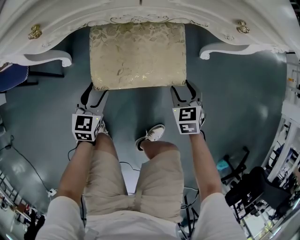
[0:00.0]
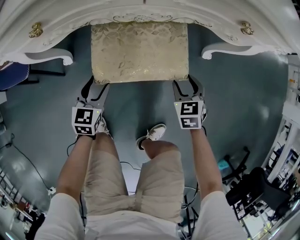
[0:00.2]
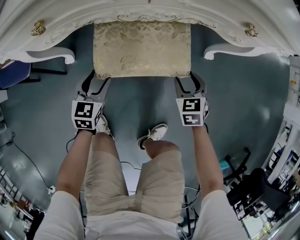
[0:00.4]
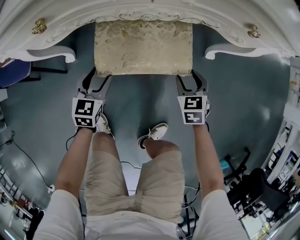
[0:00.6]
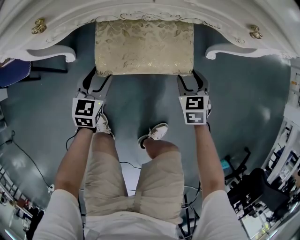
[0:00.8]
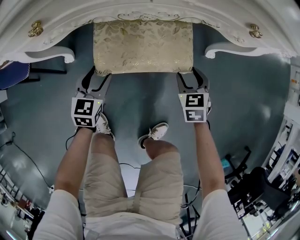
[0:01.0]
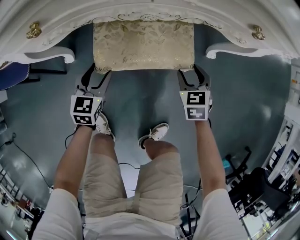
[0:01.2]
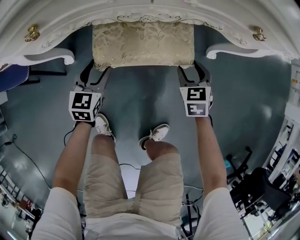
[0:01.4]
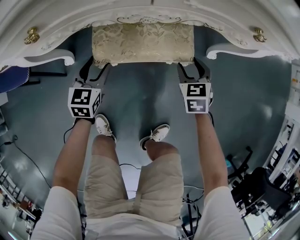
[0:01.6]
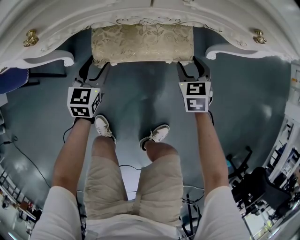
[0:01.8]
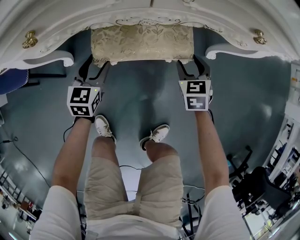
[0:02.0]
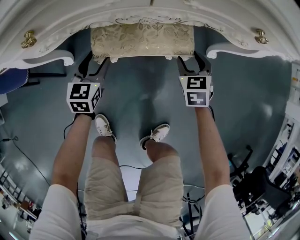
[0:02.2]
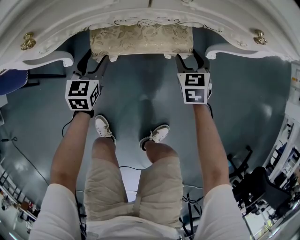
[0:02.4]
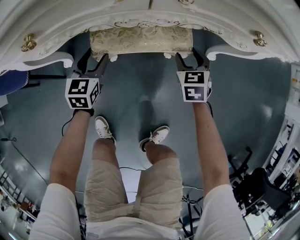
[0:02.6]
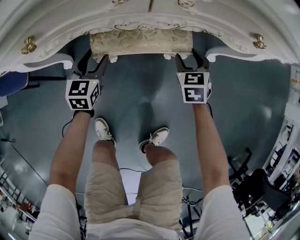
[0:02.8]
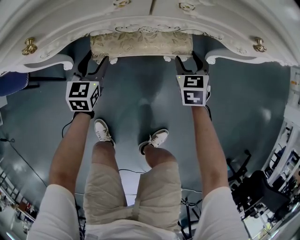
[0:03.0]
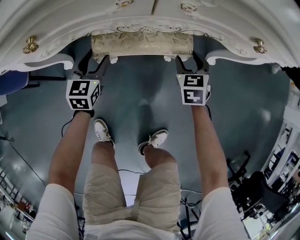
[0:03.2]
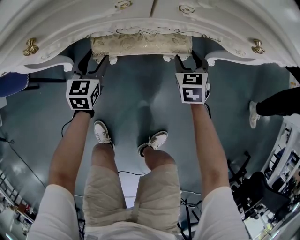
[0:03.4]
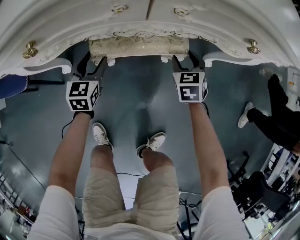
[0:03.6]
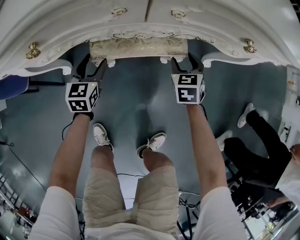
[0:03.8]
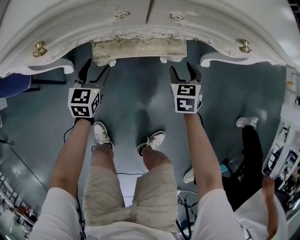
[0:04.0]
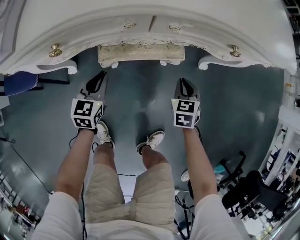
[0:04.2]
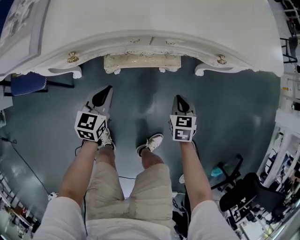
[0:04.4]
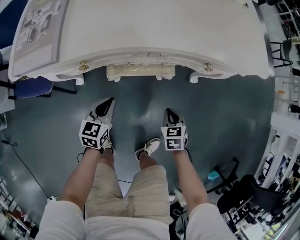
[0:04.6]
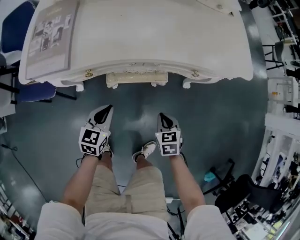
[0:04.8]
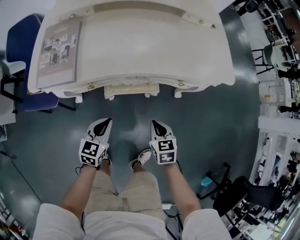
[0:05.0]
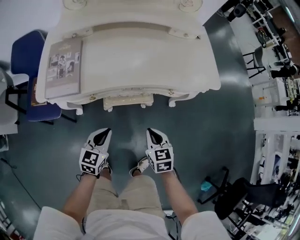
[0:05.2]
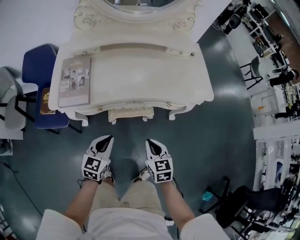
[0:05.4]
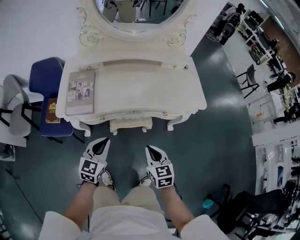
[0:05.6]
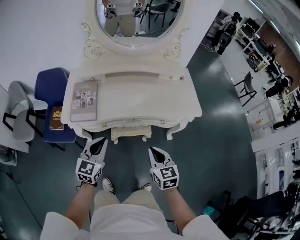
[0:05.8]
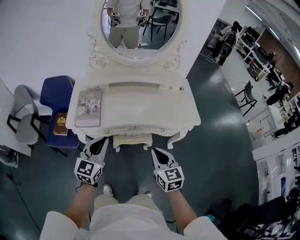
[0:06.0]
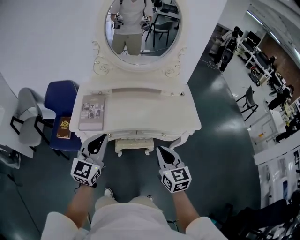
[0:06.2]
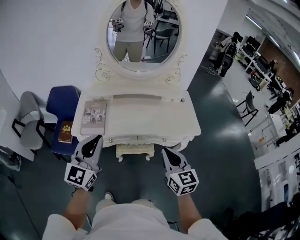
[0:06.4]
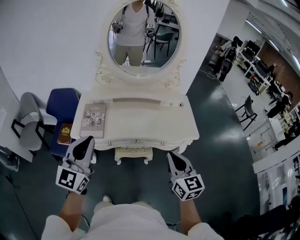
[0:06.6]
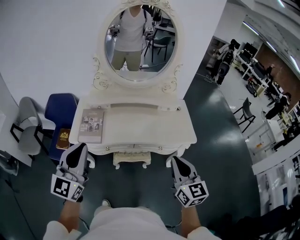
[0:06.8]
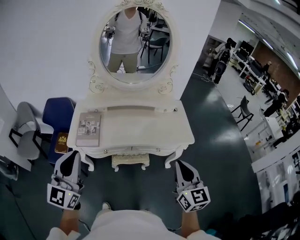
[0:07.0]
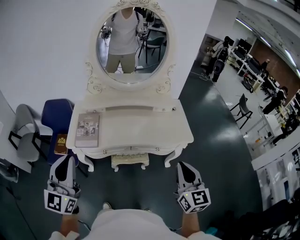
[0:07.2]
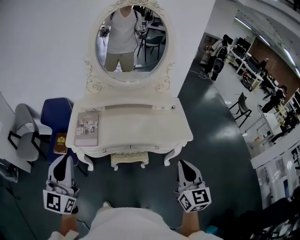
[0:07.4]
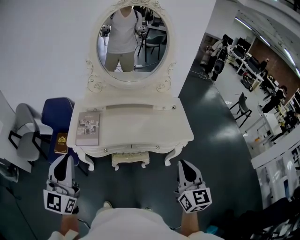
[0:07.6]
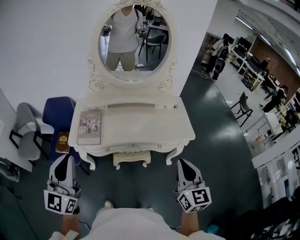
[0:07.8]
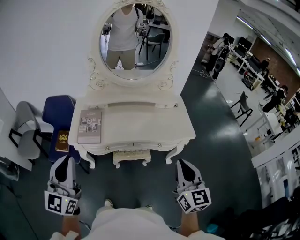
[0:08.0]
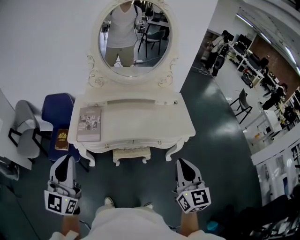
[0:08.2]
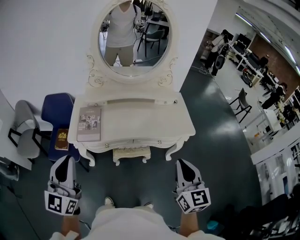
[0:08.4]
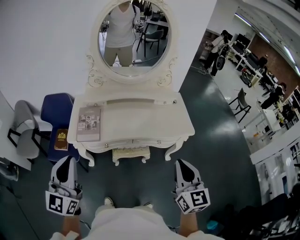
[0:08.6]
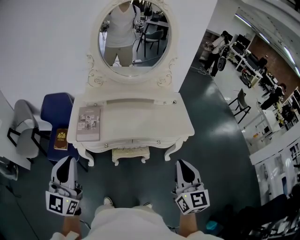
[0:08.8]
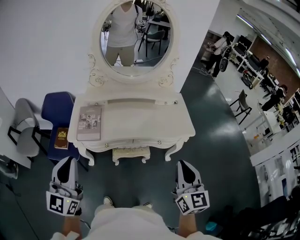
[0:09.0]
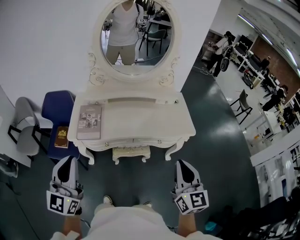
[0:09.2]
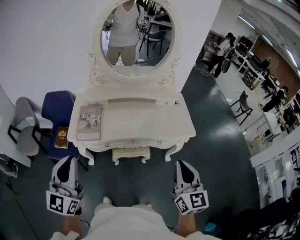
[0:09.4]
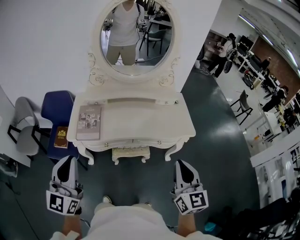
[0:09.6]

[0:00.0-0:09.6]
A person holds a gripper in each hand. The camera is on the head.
0:00.0 to 0:01.6: The two grippers go some 10 cm forward.
0:01.6 to 0:03.2: The grippers both shift forward by roughly 5 cm.
0:03.2 to 0:04.8: Both grippers move upward and backward, about 25 cm. The left gripper closes. Meanwhile the right gripper closes up.
0:04.8 to 0:06.4: The two grippers go some 50 cm upward. The right gripper tilts its fingers roughly 40 degrees upward. Meanwhile the left gripper tilts its fingers some 40 degrees upward.
0:06.4 to 0:08.0: The right gripper is displaced upward, backward and to the right by about 10 cm. Meanwhile the left gripper travels to the left, backward and upward by approximately 10 cm.
0:08.0 to 0:09.6: The grippers stay close to where they were, moving slightly.

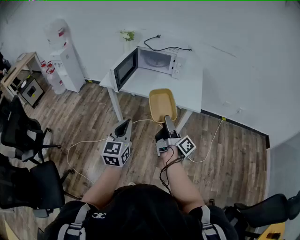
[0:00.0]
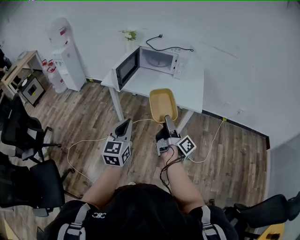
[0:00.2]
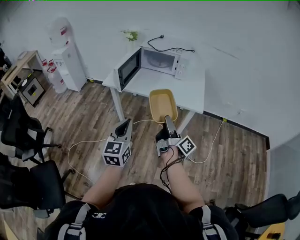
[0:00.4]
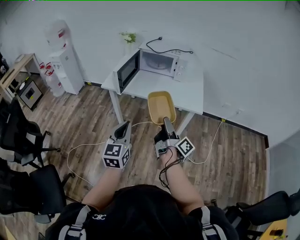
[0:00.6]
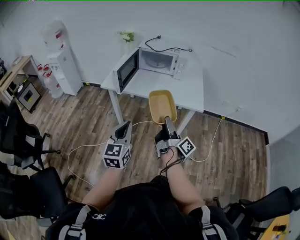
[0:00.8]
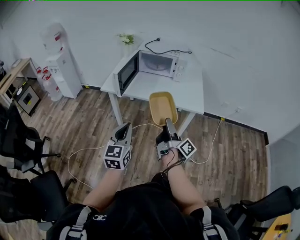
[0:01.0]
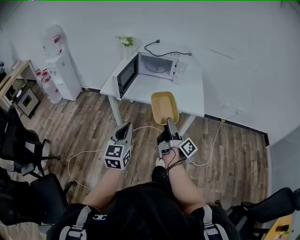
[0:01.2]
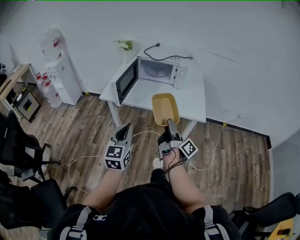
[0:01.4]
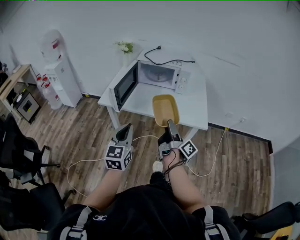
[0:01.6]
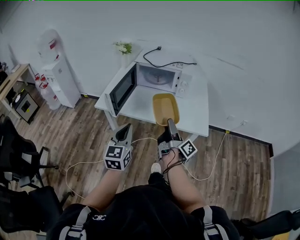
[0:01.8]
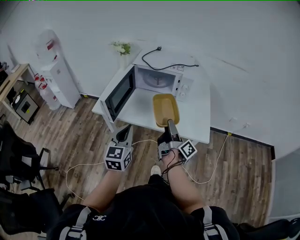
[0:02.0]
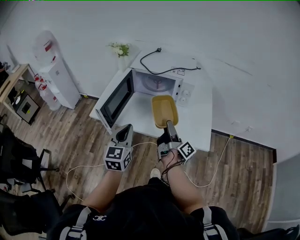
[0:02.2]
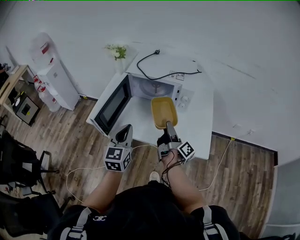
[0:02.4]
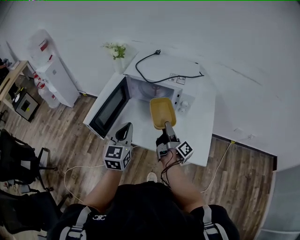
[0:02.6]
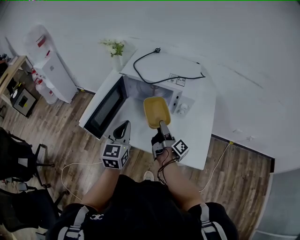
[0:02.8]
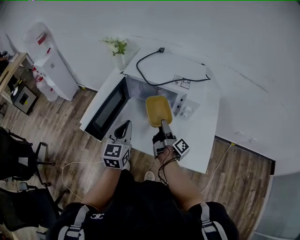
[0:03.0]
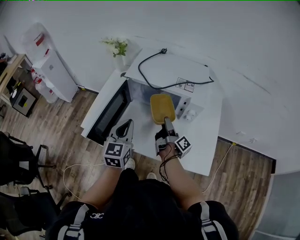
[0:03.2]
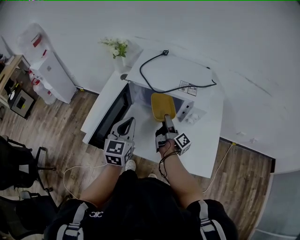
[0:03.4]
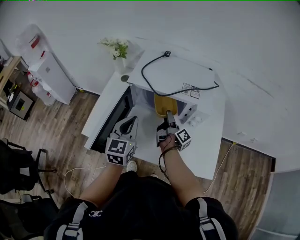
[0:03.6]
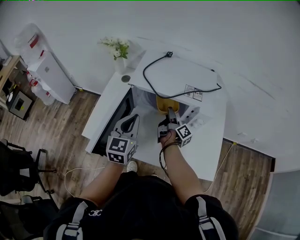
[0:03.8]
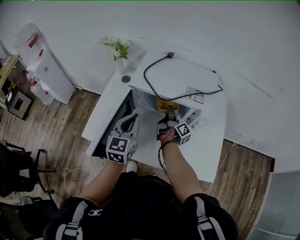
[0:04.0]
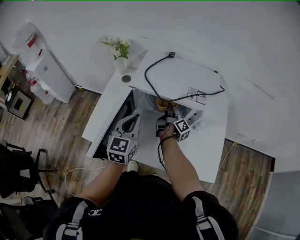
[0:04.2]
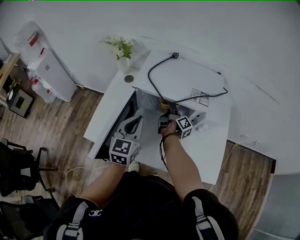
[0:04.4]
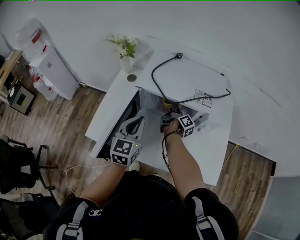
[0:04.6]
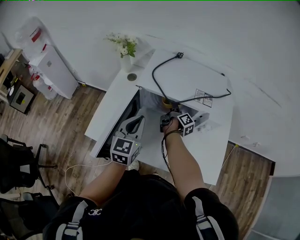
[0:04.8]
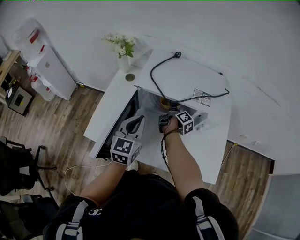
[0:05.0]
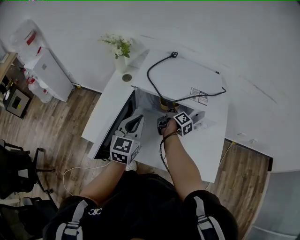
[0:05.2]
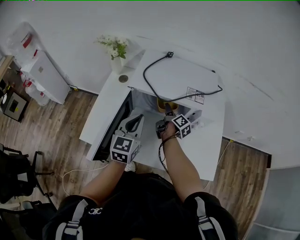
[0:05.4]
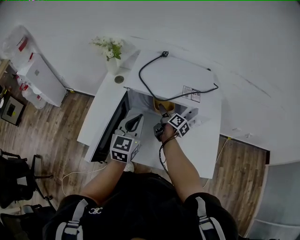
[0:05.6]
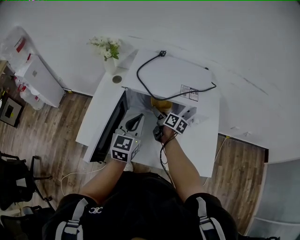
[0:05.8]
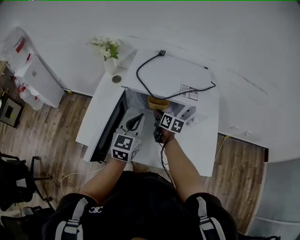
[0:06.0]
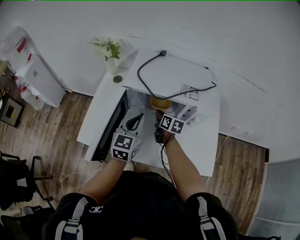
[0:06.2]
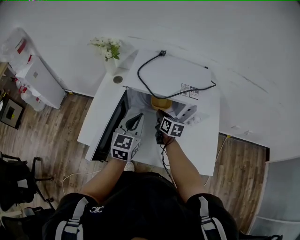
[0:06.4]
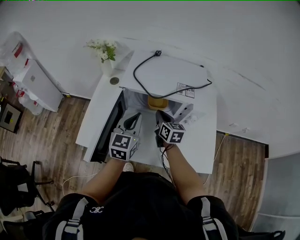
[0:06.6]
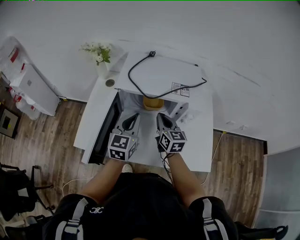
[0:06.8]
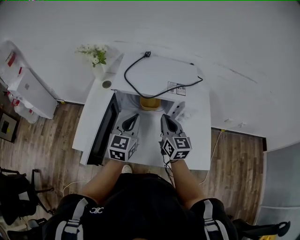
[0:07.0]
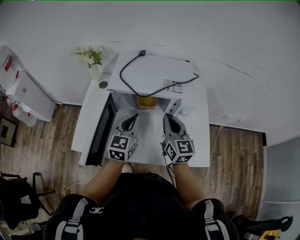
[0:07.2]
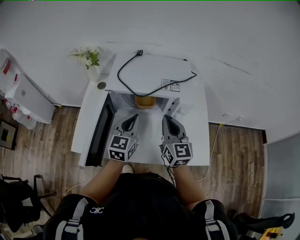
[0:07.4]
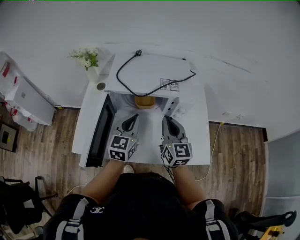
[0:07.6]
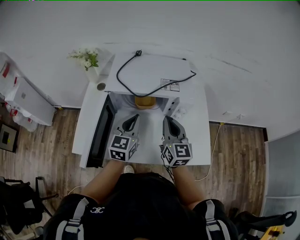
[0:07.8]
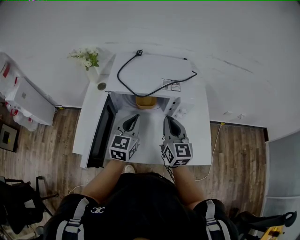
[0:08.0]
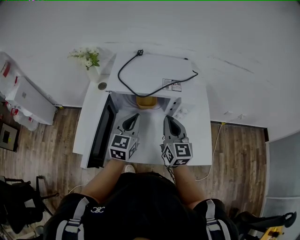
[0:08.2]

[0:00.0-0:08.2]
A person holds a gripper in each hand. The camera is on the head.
0:00.0 to 0:01.6: The left gripper ends up about 15 cm from where it was.
0:01.6 to 0:03.2: The left gripper moves approximately 40 cm.
0:03.2 to 0:05.0: The left gripper shifts by about 10 cm.

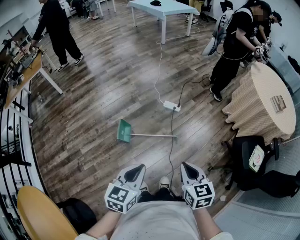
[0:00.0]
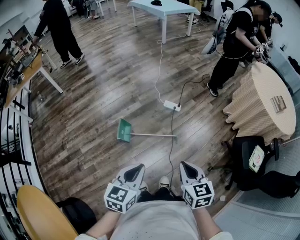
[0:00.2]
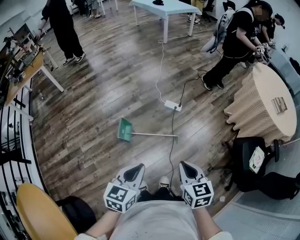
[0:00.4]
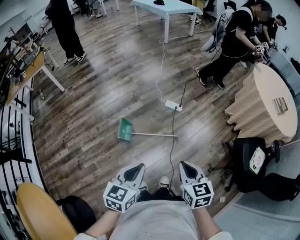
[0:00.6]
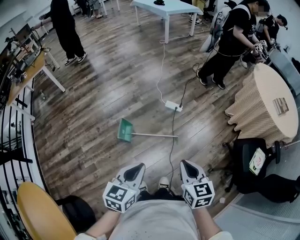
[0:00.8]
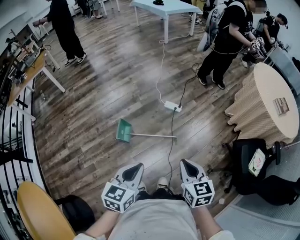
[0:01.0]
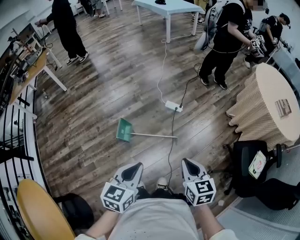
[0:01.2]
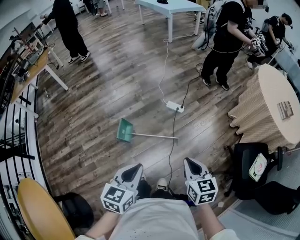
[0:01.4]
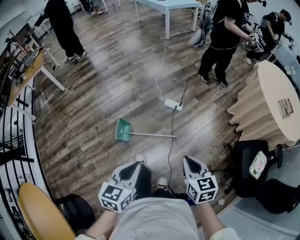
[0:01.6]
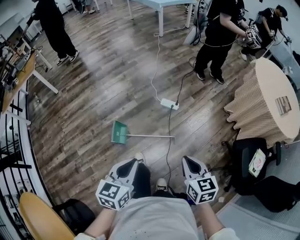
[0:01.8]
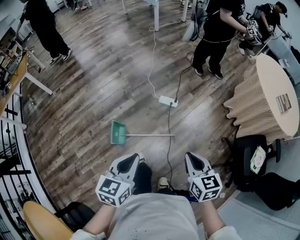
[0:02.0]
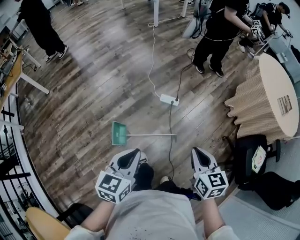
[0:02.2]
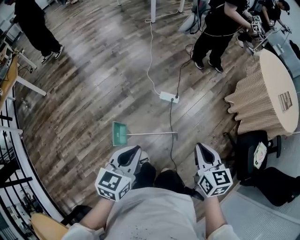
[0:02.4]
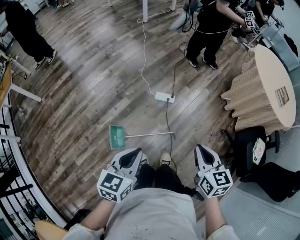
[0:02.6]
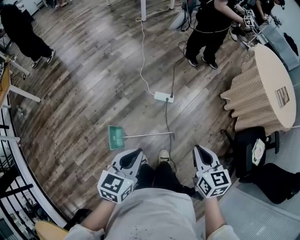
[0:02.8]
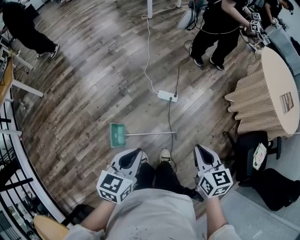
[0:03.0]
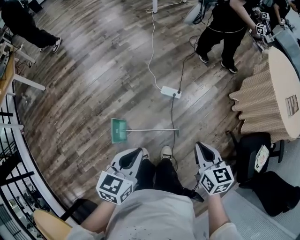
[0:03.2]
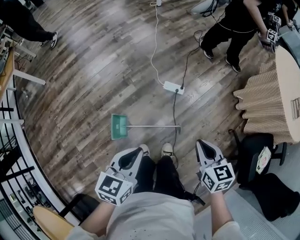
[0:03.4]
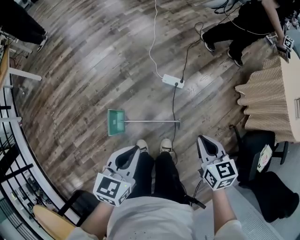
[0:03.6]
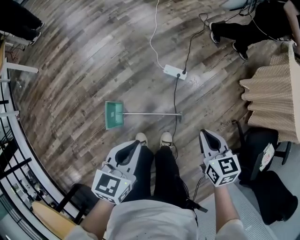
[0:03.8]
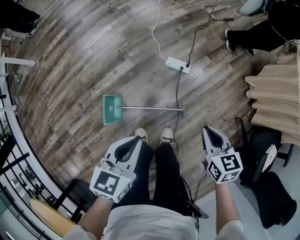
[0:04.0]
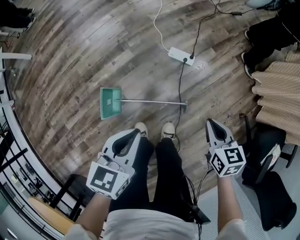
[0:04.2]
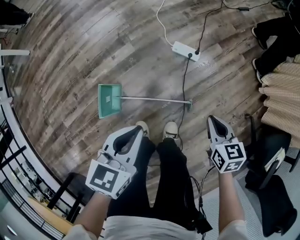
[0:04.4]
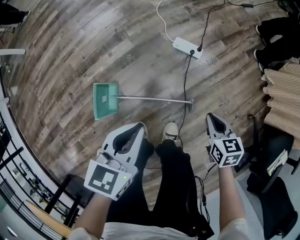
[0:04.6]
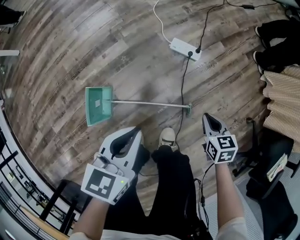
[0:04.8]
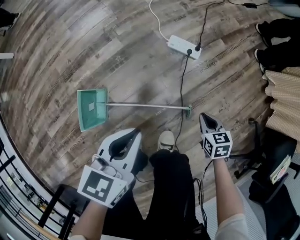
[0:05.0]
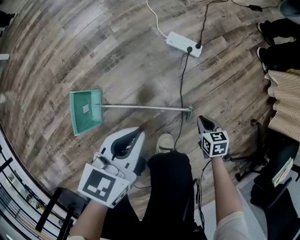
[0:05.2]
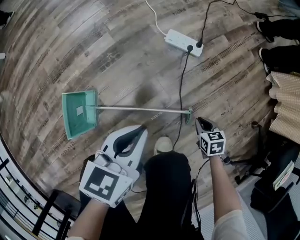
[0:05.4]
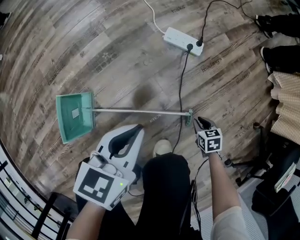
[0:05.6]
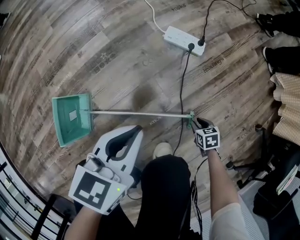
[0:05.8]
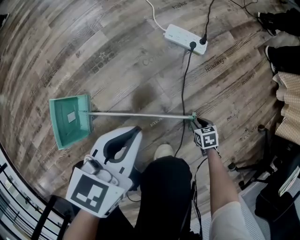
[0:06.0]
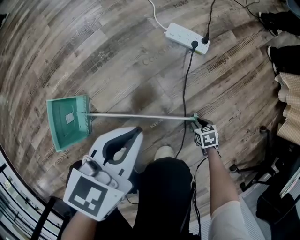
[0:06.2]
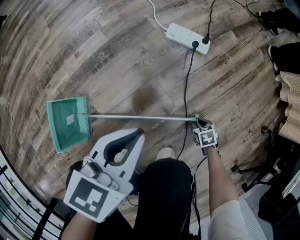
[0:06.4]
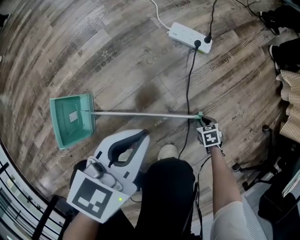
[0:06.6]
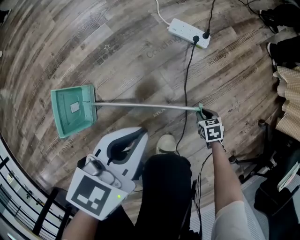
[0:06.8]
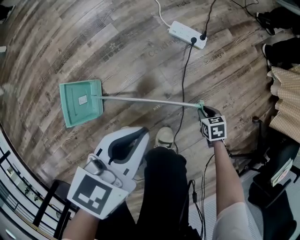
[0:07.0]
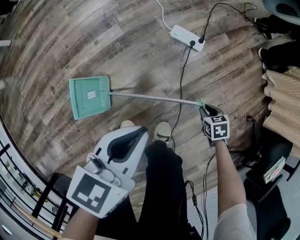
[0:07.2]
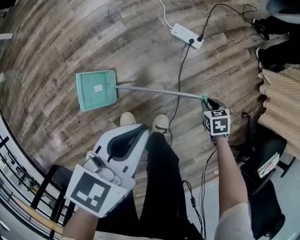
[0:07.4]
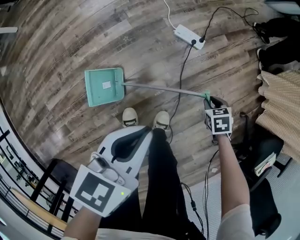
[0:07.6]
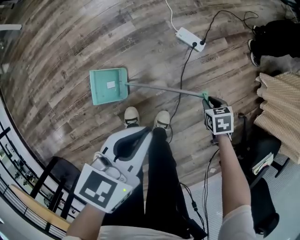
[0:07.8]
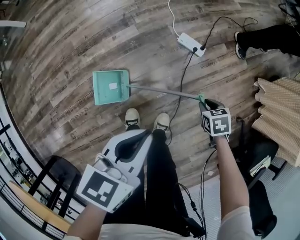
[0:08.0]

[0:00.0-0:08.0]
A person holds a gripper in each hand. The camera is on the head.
0:00.0 to 0:01.6: The right gripper goes some 10 cm forward and to the right, while the left gripper heads forward, covering some 5 cm.
0:01.6 to 0:03.2: The two grippers go some 25 cm forward.
0:03.2 to 0:04.8: The grippers both shift downward by some 40 cm. The right gripper turns by roughly 20 degrees.
0:04.8 to 0:06.4: The right gripper shifts roughly 40 cm downward, and changes its angle by roughly 30 degrees; the left gripper moves downward, about 20 cm.
0:06.4 to 0:08.0: The grippers both shift upward by some 40 cm.
